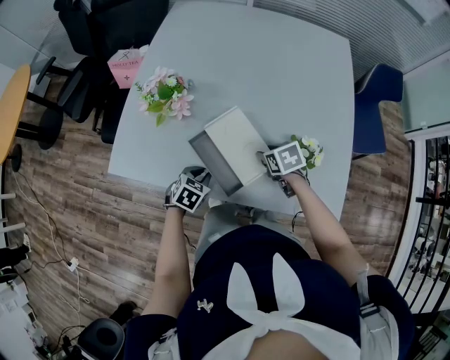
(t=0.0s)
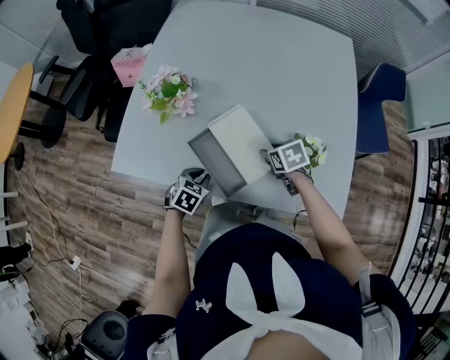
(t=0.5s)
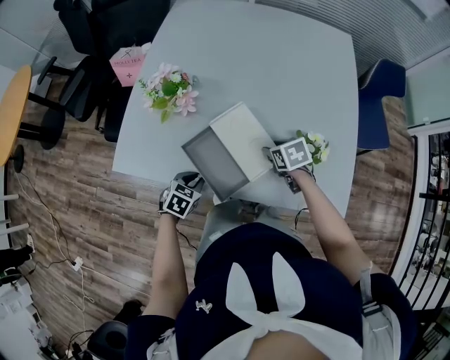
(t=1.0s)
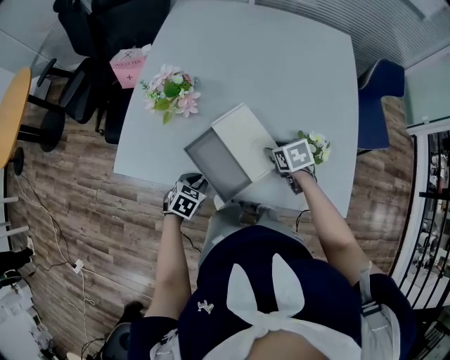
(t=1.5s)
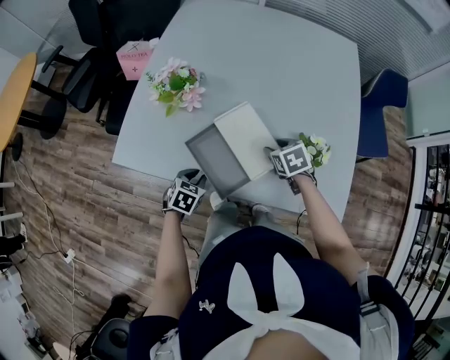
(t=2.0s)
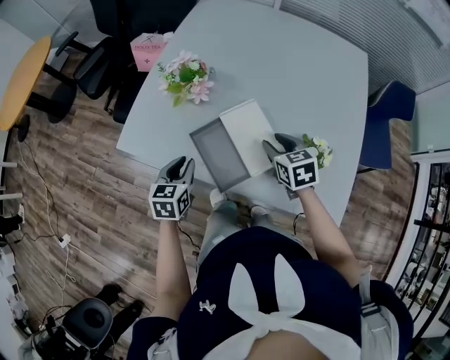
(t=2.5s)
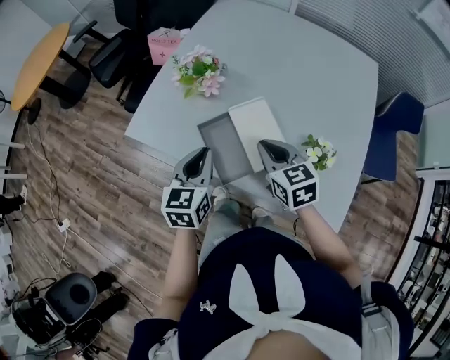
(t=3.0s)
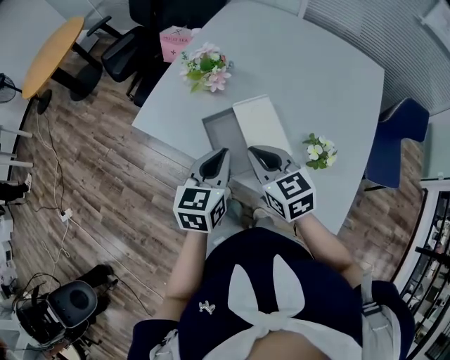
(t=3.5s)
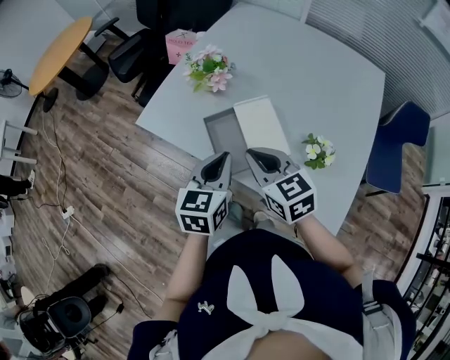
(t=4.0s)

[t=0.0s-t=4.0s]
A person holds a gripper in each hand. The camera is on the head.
t=0.0s to t=2.0s: The grippers stay close to where they were, moving slightly.
t=2.0s to t=4.0s: The two grippers go roughly 20 cm upward. The left gripper tips its fingers upward by about 30 degrees. Meanwhile the right gripper points its fingers some 40 degrees further upward, and closes up.

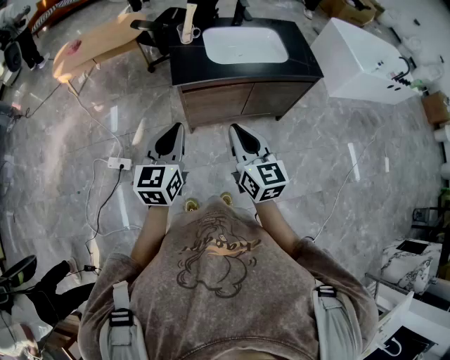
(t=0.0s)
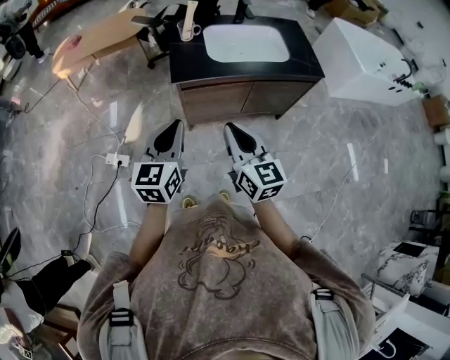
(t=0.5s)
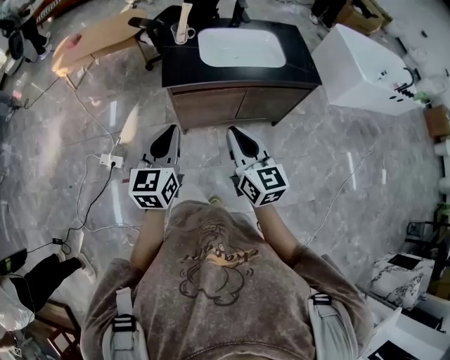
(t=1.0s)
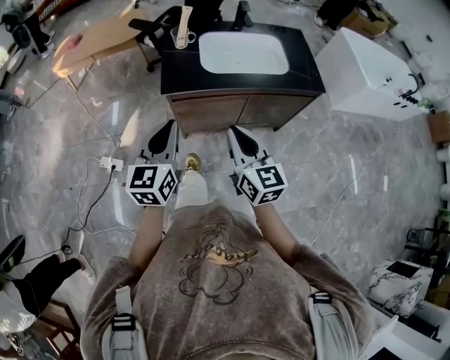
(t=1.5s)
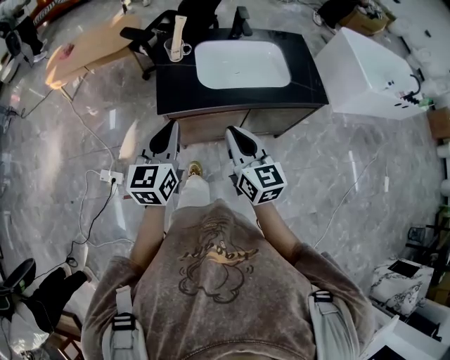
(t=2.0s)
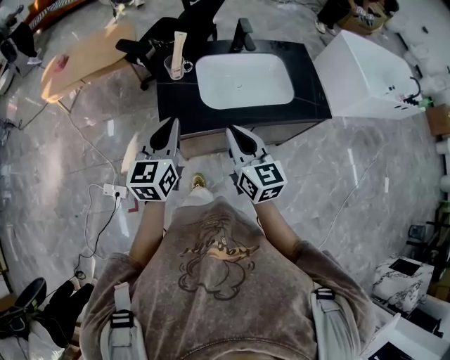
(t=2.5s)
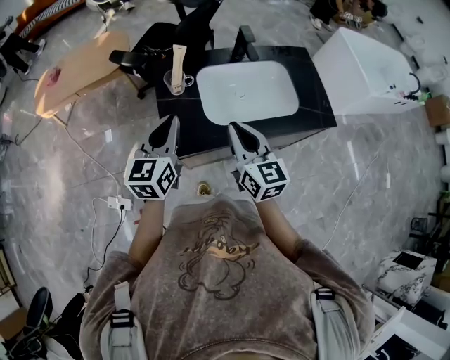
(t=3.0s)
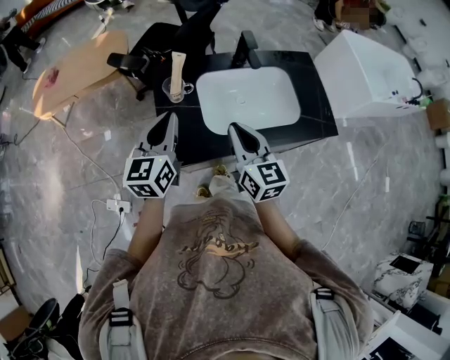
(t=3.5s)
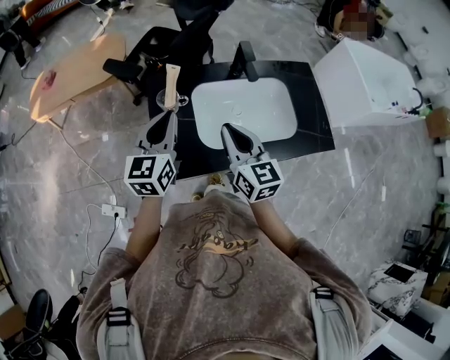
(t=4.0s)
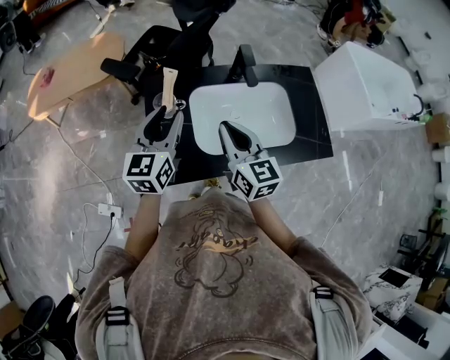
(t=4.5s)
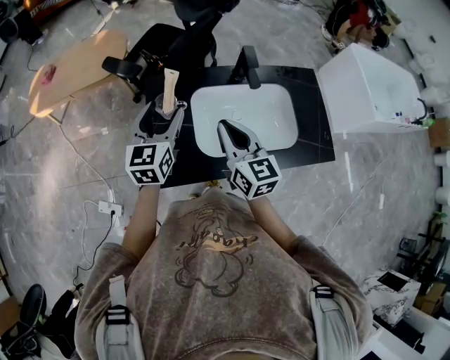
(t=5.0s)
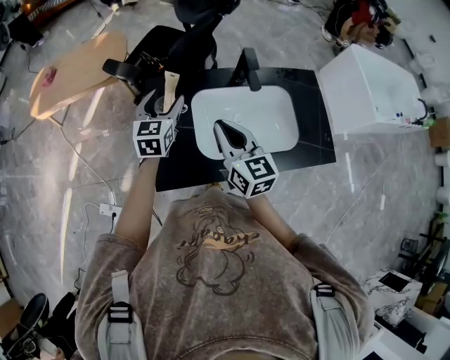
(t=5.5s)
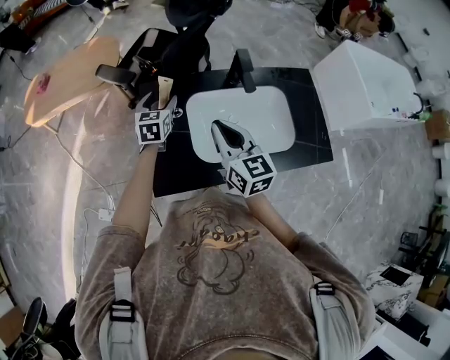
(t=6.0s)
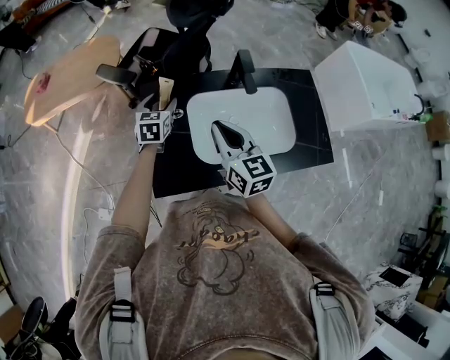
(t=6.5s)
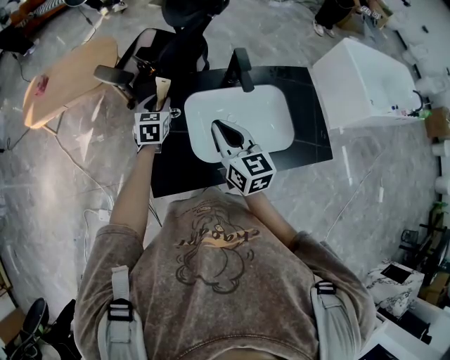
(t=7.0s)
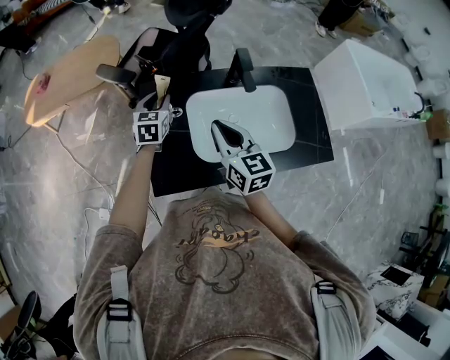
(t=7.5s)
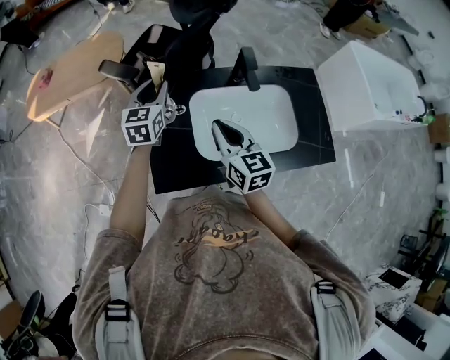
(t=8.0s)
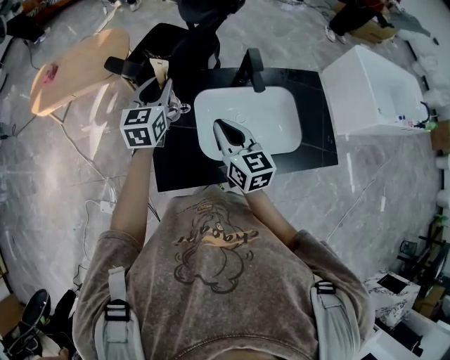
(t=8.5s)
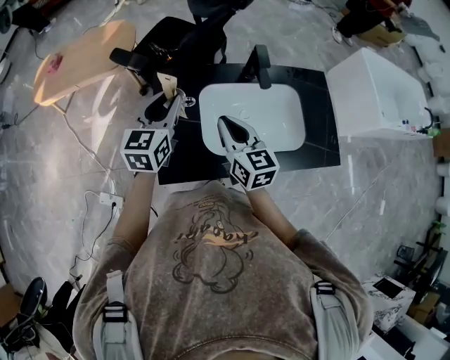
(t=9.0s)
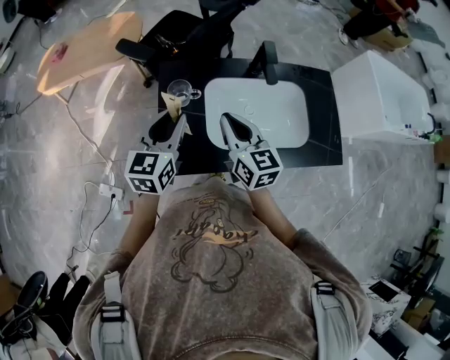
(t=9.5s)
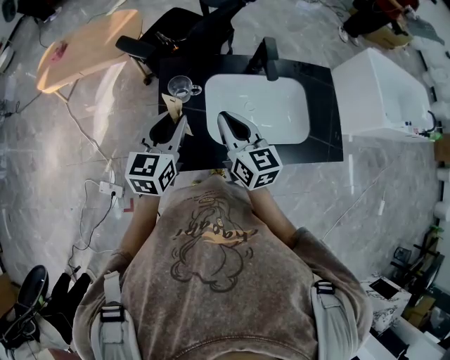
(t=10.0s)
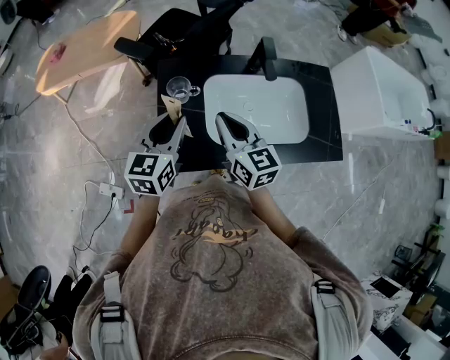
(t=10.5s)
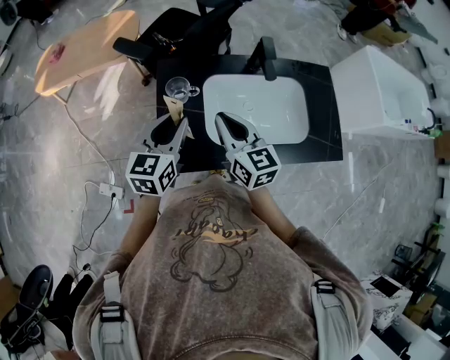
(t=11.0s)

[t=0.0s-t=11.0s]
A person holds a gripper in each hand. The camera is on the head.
t=0.0s to t=2.0s: Both grippers move forward, about 15 cm.
t=2.0s to t=3.5s: The two grippers go some 25 cm forward.
t=3.5s to t=5.5s: The right gripper heads forward, covering roughly 10 cm. The left gripper travels forward and downward by about 20 cm, and opens up.
t=5.5s to t=7.5s: The left gripper goes about 5 cm downward, and closes.
t=7.5s to t=9.0s: The left gripper goes about 15 cm upward and backward.
t=9.0s to t=11.0s: The left gripper is displaced backward by about 10 cm.

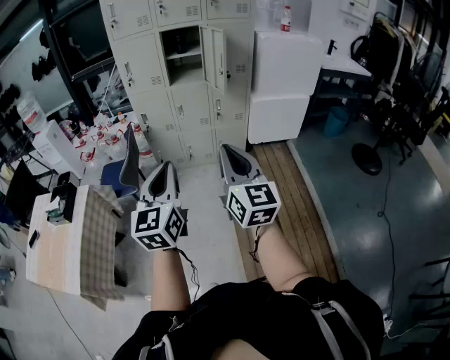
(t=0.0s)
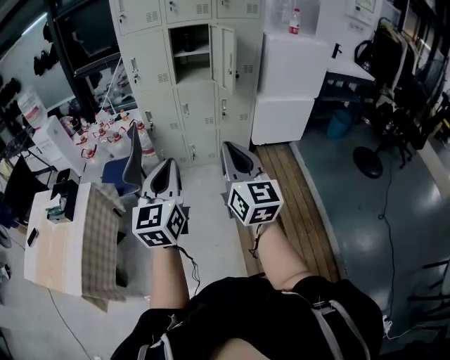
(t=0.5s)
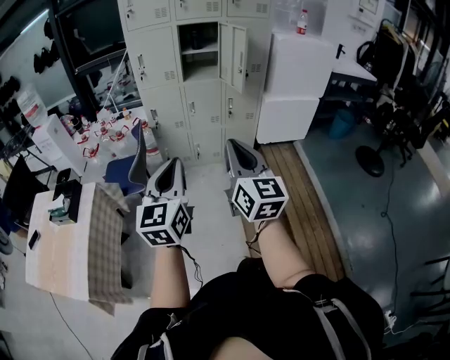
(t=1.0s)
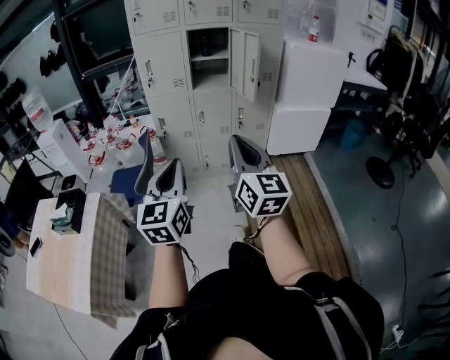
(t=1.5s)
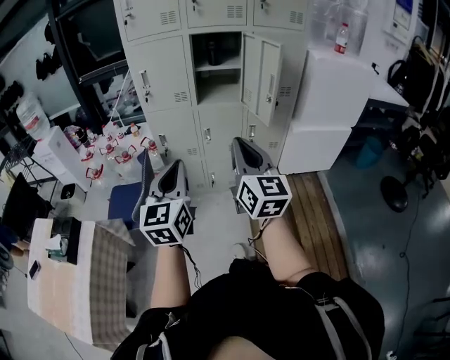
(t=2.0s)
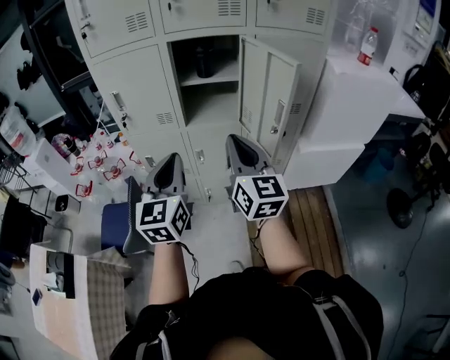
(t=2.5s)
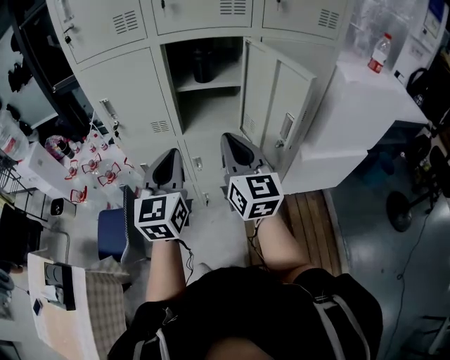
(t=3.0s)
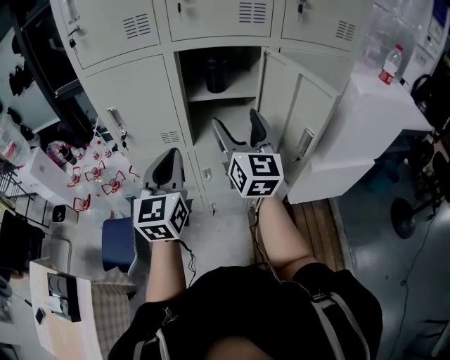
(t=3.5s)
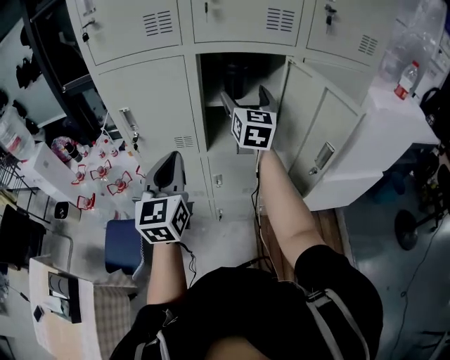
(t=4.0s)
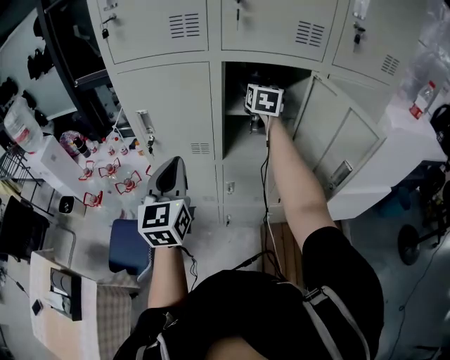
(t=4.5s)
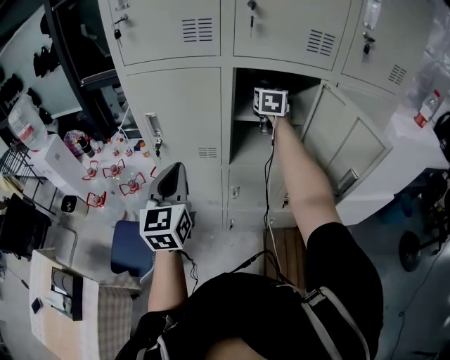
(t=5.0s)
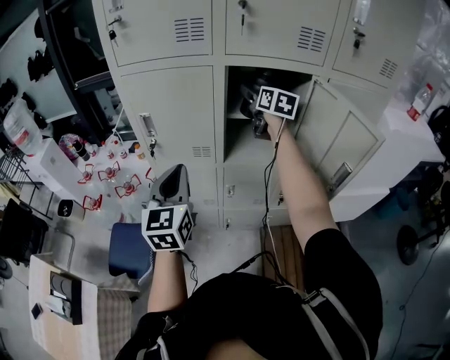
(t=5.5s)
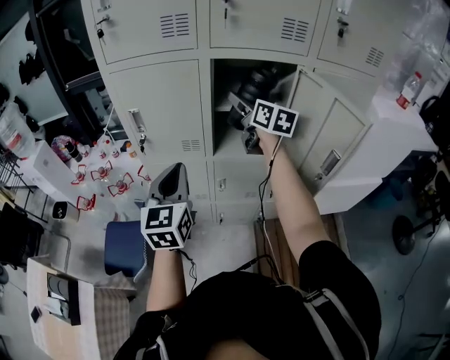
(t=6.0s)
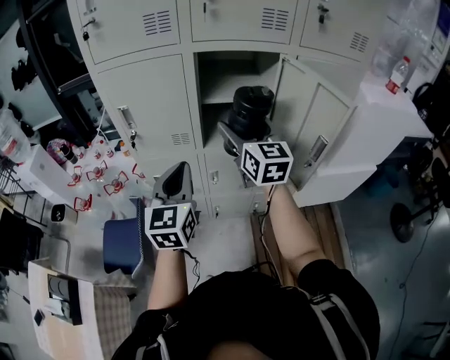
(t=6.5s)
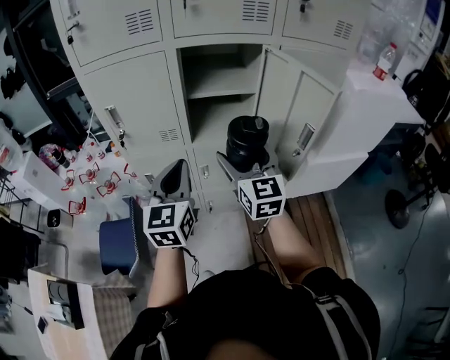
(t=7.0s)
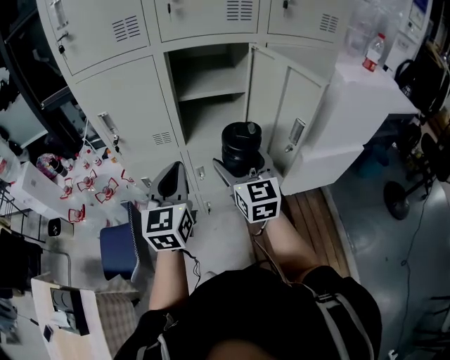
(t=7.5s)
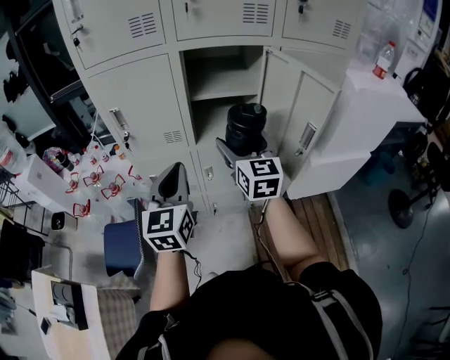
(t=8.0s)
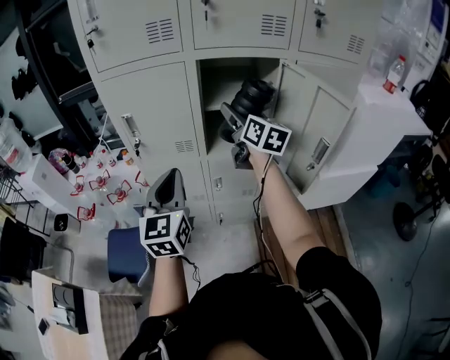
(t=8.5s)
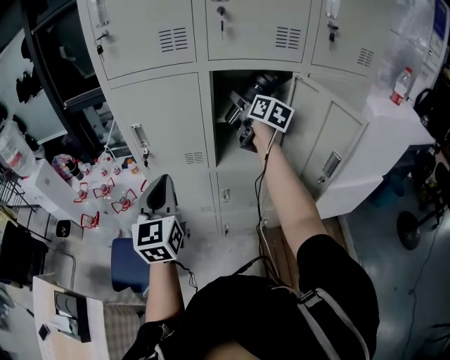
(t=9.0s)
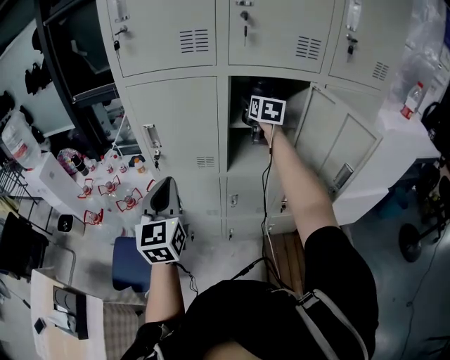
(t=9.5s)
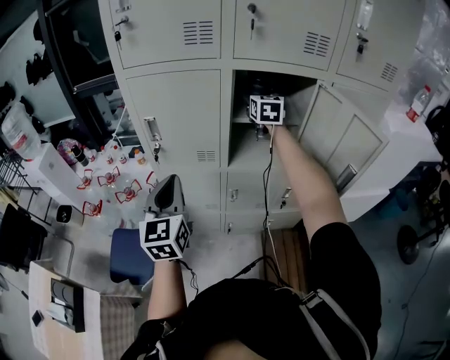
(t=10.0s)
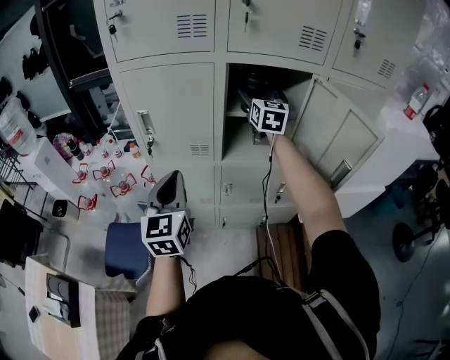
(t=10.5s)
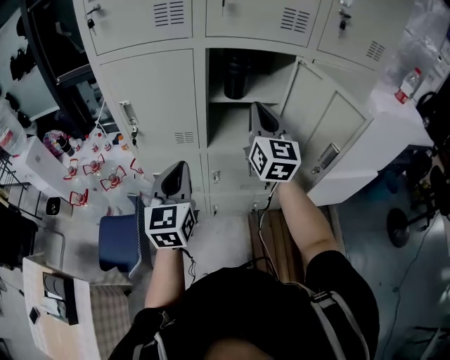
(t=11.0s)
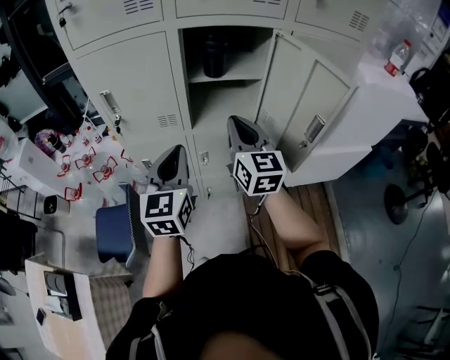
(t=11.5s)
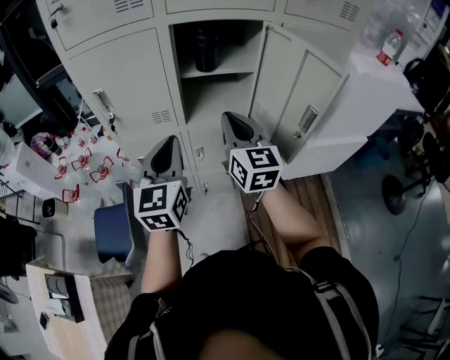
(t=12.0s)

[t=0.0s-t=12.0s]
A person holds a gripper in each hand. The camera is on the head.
t=0.0s to t=2.0s: The grippers both shift forward by some 35 cm.
t=2.0s to t=4.0s: Both grippers are carried forward, about 50 cm. The right gripper opens.
t=4.0s to t=6.0s: The right gripper travels forward and back again, roughly 15 cm each way, and changes its angle by approximately 30 degrees.
t=6.0s to t=8.0s: The right gripper is displaced backward by approximately 20 cm, and rotates approximately 20 degrees; the left gripper travels to the right and backward by some 5 cm.
t=8.0s to t=10.0s: The right gripper heads forward, covering some 30 cm, while the left gripper moves to the left and forward, roughly 15 cm.
t=10.0s to t=12.0s: The left gripper heads to the right, covering approximately 15 cm; the right gripper heads backward, covering roughly 30 cm, and closes its fingers.
